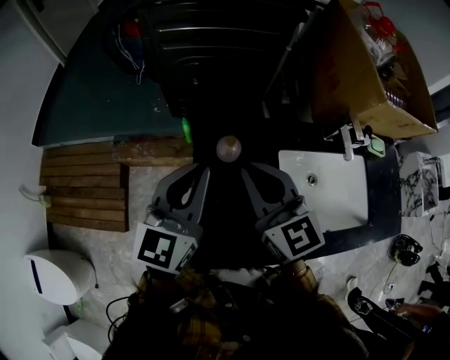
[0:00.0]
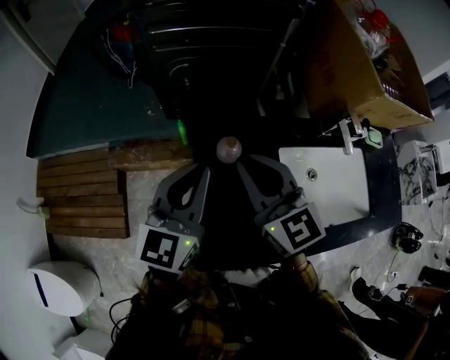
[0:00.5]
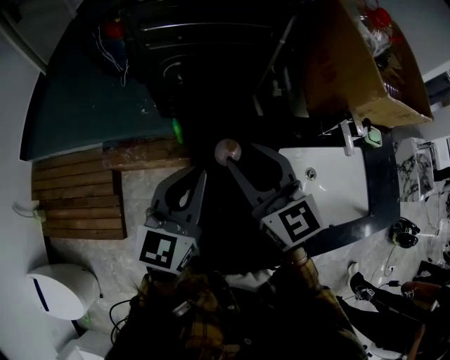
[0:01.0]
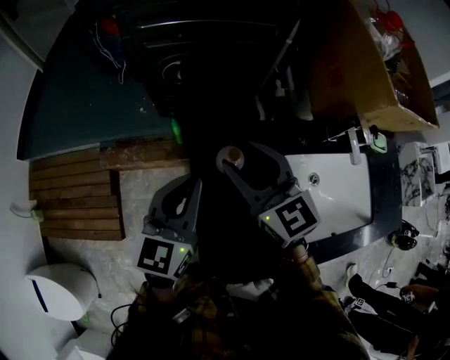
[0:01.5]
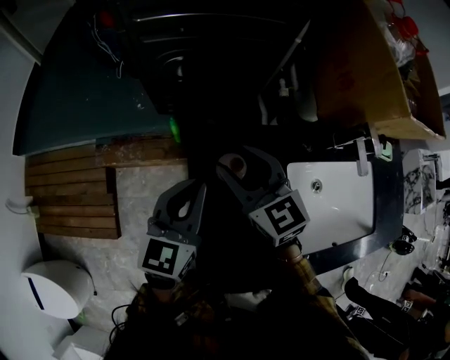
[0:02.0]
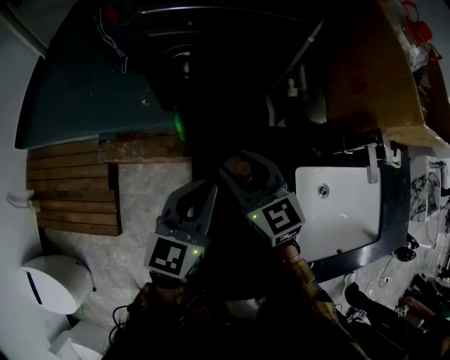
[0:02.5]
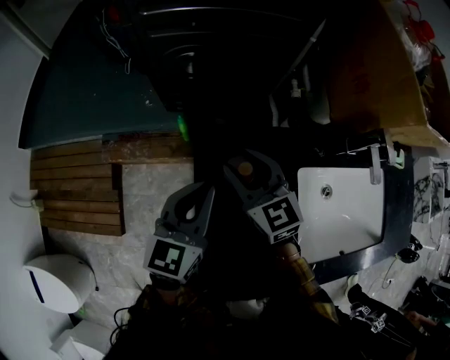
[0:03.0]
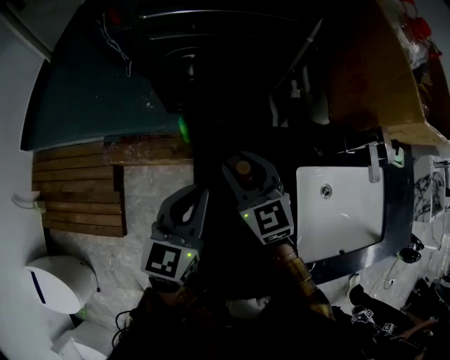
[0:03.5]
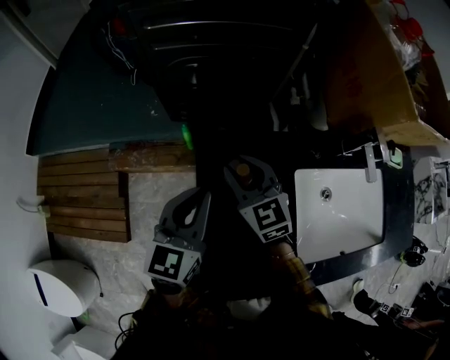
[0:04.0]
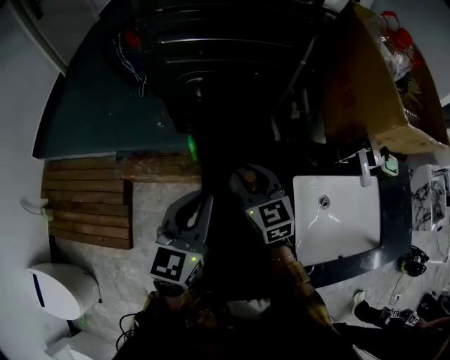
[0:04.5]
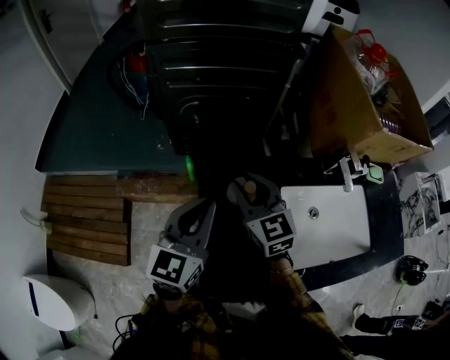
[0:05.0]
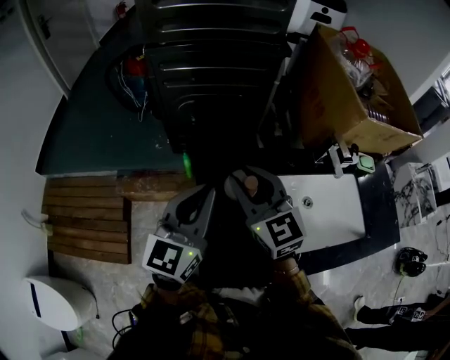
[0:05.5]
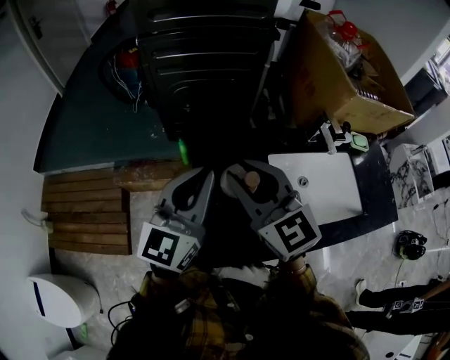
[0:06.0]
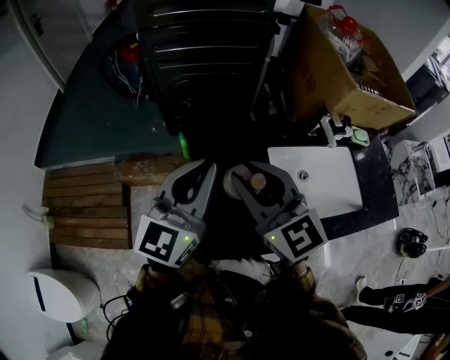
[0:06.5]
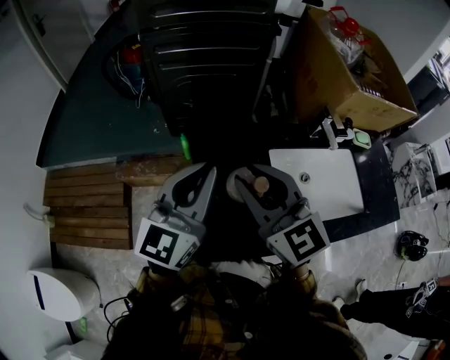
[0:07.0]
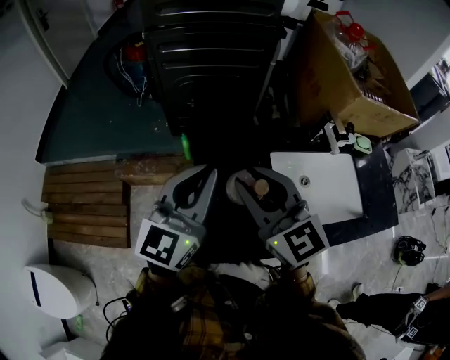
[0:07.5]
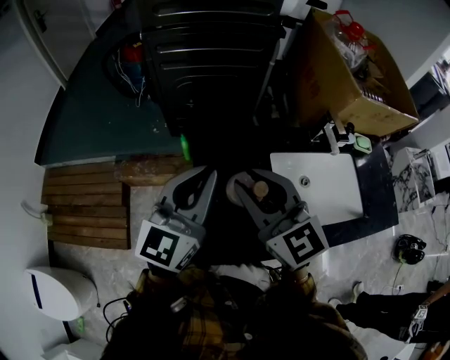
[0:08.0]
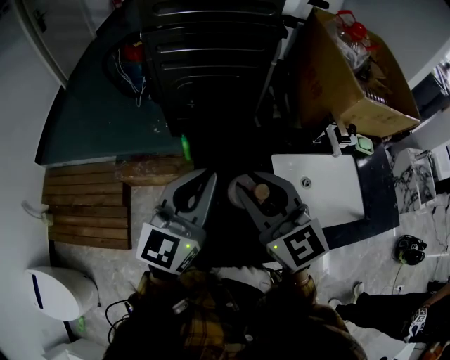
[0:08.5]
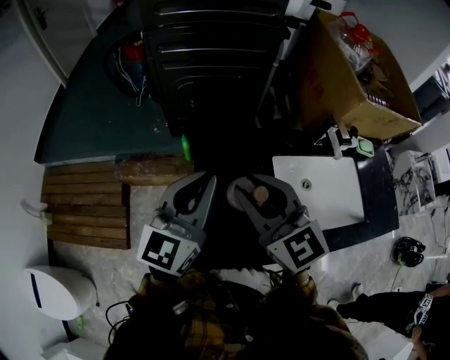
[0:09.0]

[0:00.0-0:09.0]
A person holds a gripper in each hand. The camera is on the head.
0:00.0 to 0:02.0: The right gripper is displaced forward and downward by about 15 cm, and opens up. Meanwhile the left gripper goes about 15 cm downward and forward.
0:02.0 to 0:04.5: There are only small adjustments of the grippers.
0:04.5 to 0:07.0: The left gripper goes roughly 15 cm upward and backward; the right gripper is displaced upward and backward by approximately 30 cm.
0:07.0 to 0:09.0: The grippers make only small movements.

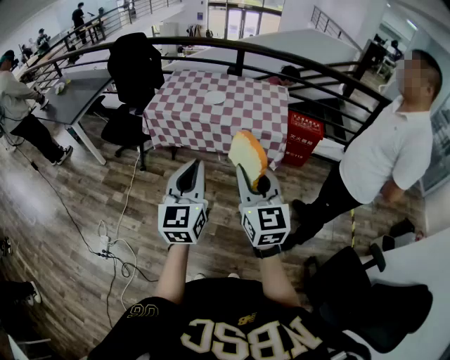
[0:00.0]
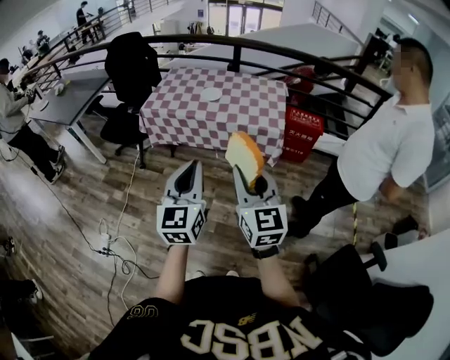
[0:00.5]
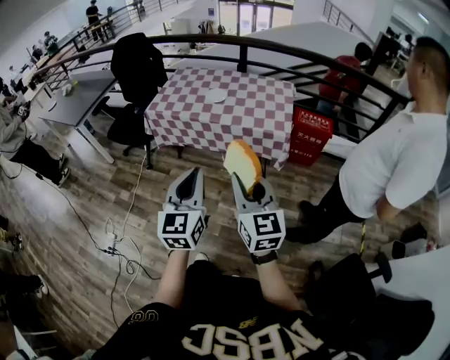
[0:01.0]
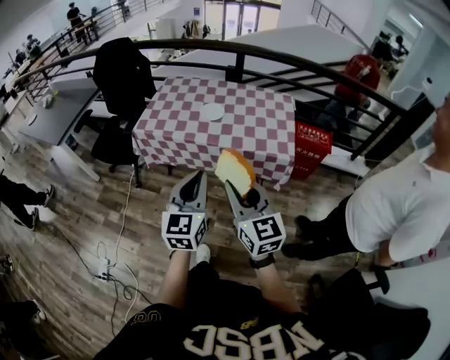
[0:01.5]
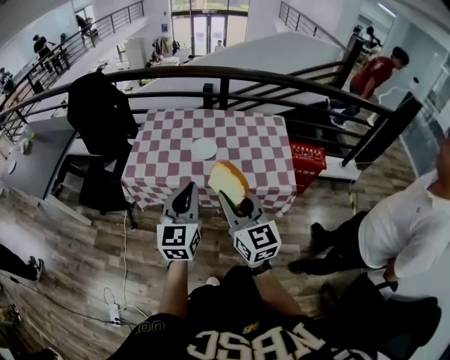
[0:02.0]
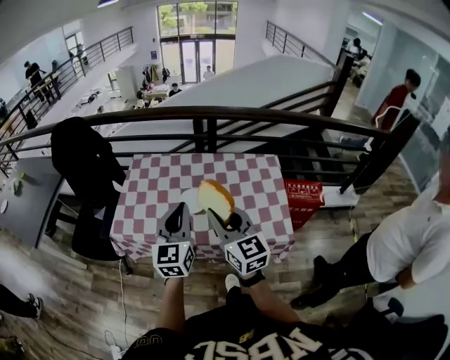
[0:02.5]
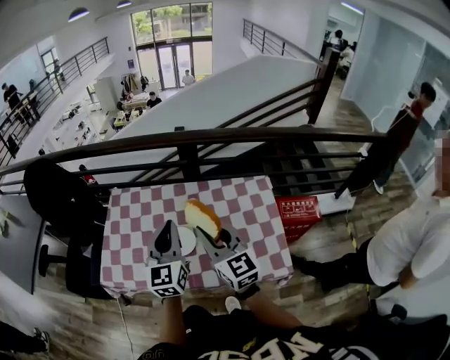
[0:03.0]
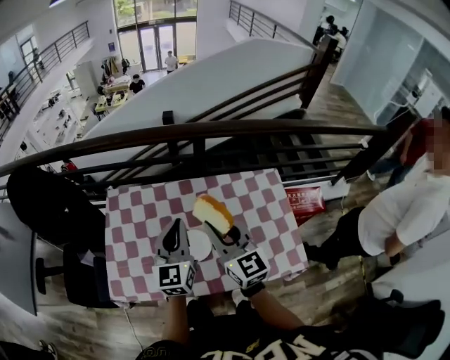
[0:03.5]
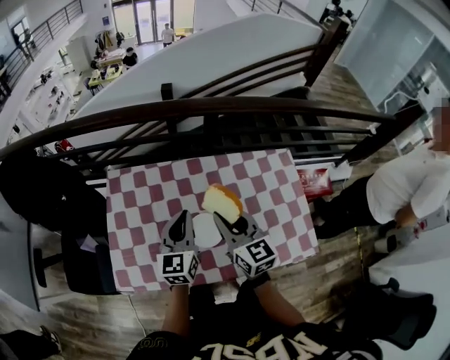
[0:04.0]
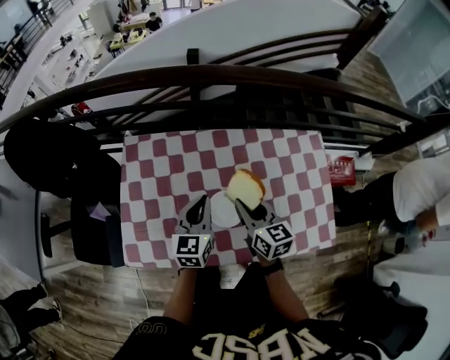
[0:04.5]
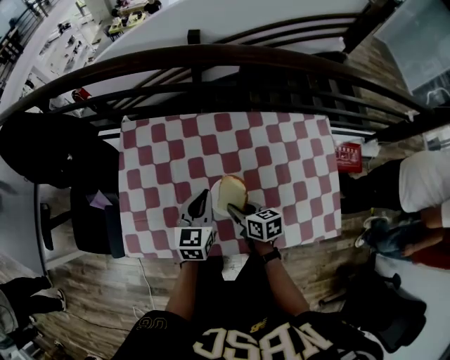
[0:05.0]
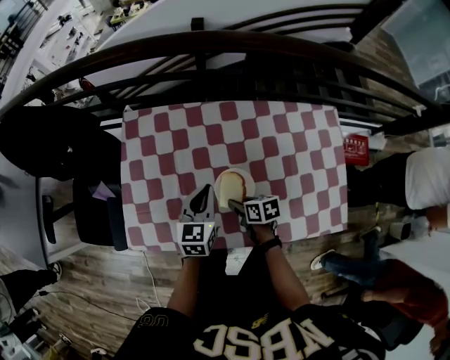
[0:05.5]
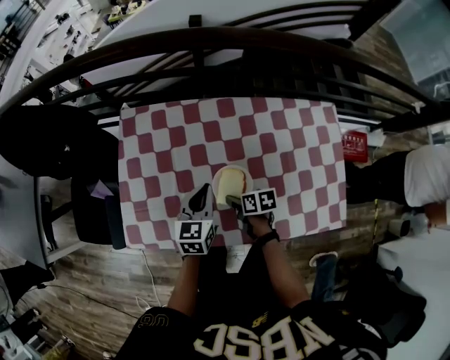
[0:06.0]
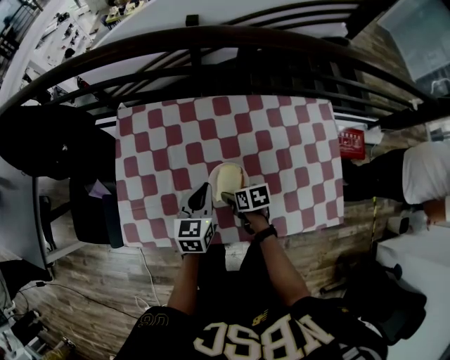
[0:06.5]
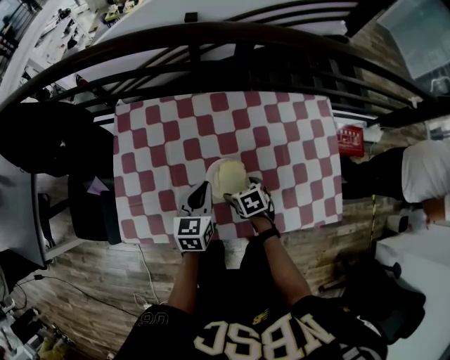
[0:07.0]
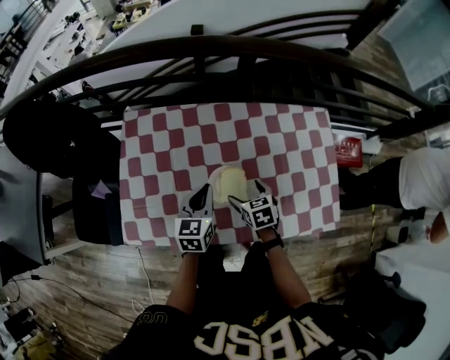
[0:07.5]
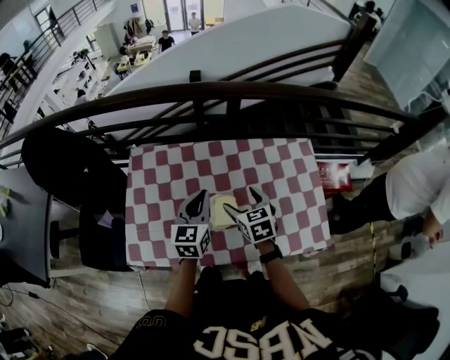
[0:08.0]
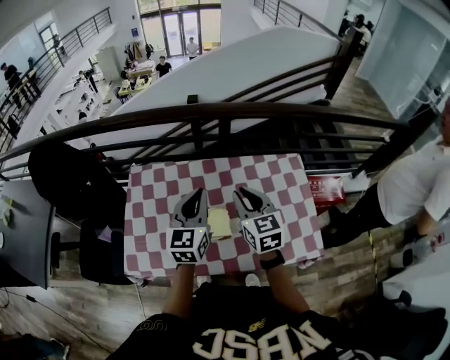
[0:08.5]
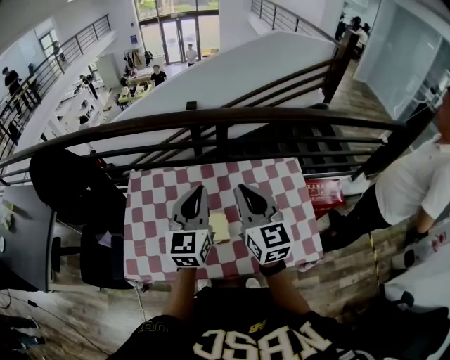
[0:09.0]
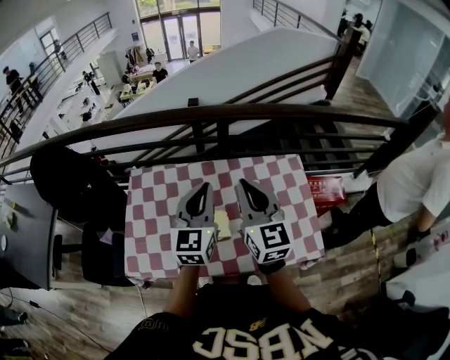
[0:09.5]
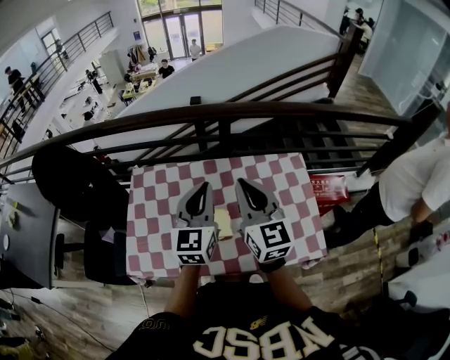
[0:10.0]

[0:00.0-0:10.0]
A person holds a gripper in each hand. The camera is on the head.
0:00.0 to 0:02.0: Both grippers move forward, some 35 cm.
0:02.0 to 0:04.0: Both grippers are carried forward, approximately 50 cm.
0:04.0 to 0:06.0: The right gripper travels downward by roughly 30 cm, and angles its fingers downward, by roughly 40 degrees. Meanwhile the left gripper is displaced downward by roughly 15 cm.
0:06.0 to 0:08.0: The right gripper shifts some 20 cm upward, changes its angle by roughly 50 degrees, and opens up; the left gripper shifts some 15 cm upward.
0:08.0 to 0:10.0: The right gripper travels upward by some 25 cm, points its fingers about 40 degrees further upward, and closes up; the left gripper travels upward and to the right by roughly 15 cm.

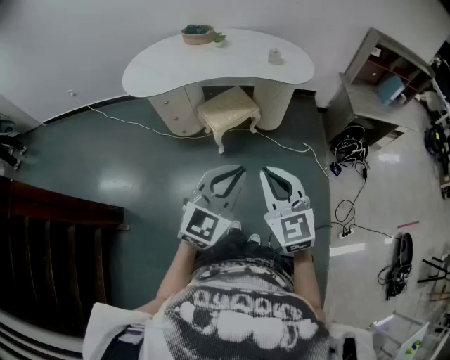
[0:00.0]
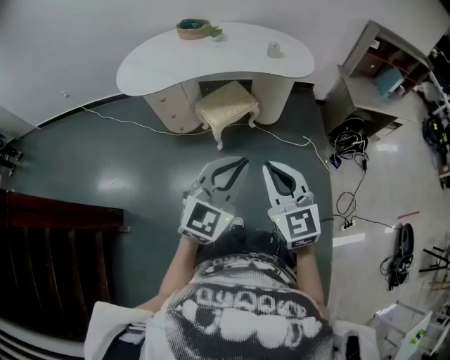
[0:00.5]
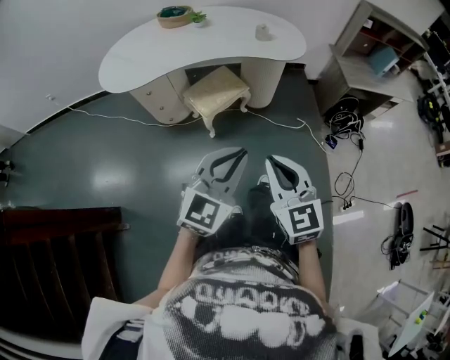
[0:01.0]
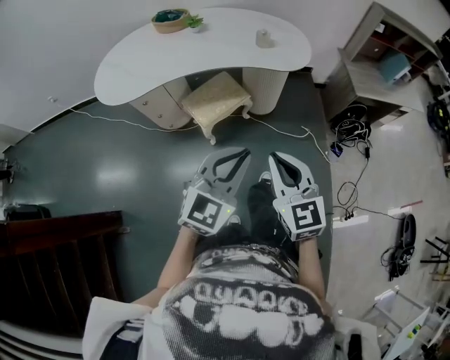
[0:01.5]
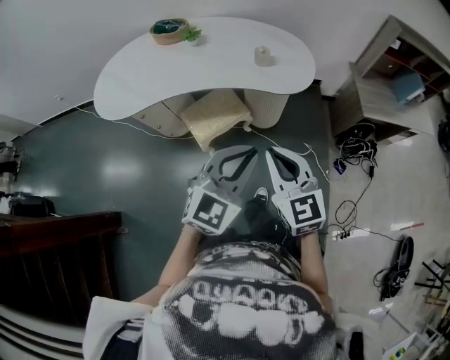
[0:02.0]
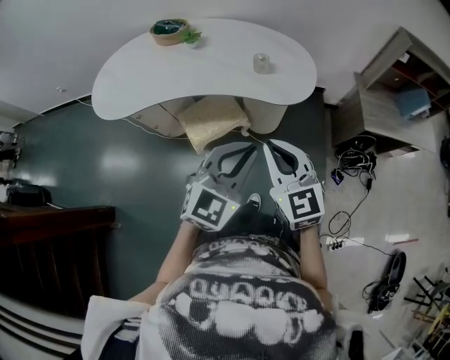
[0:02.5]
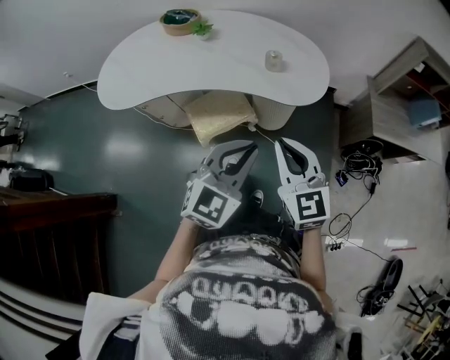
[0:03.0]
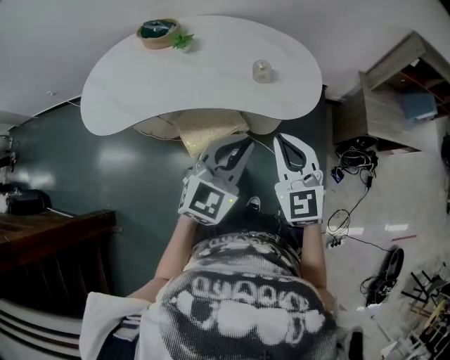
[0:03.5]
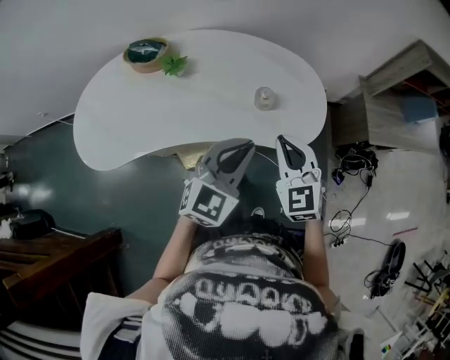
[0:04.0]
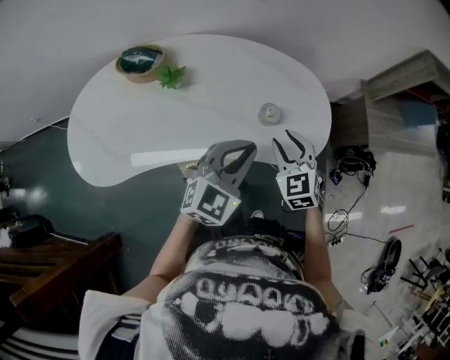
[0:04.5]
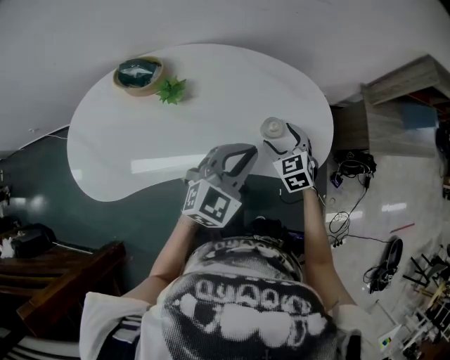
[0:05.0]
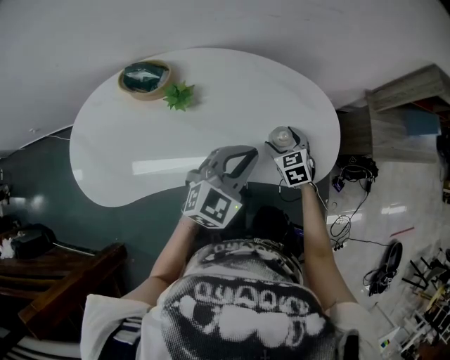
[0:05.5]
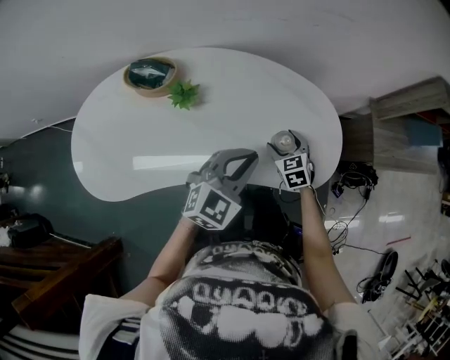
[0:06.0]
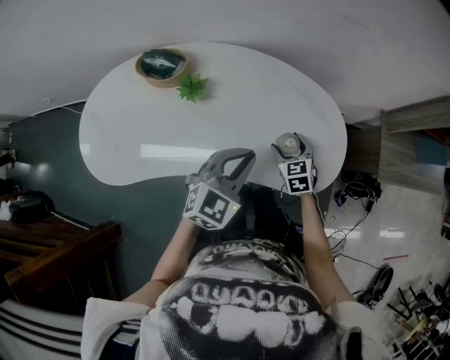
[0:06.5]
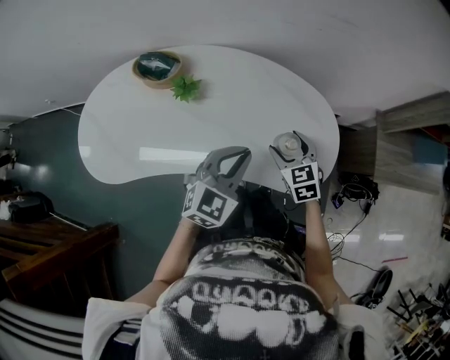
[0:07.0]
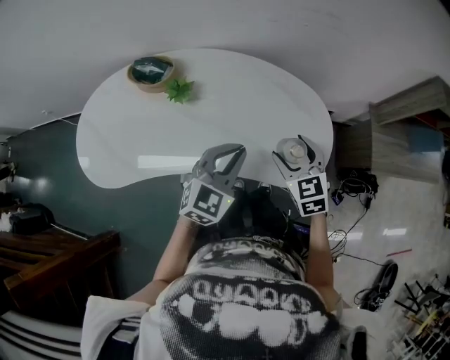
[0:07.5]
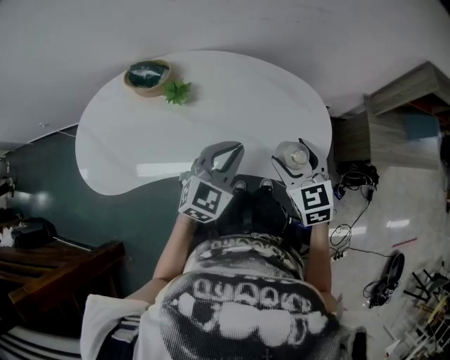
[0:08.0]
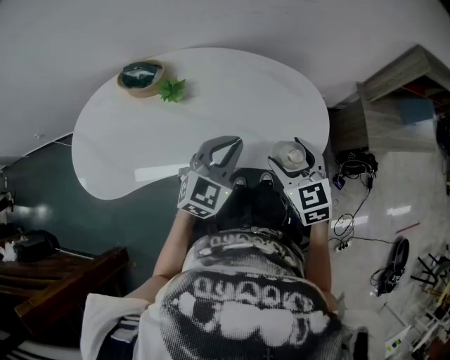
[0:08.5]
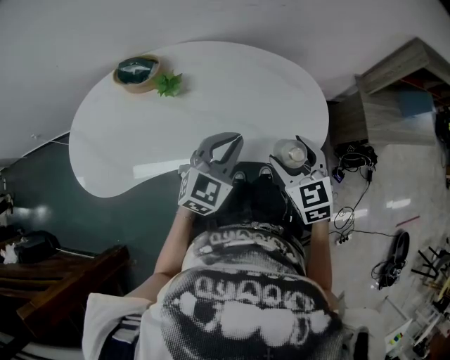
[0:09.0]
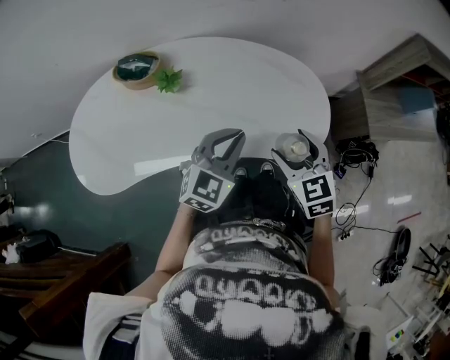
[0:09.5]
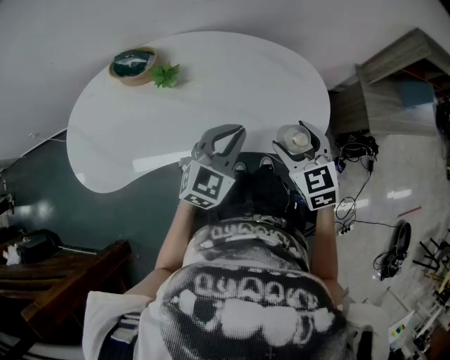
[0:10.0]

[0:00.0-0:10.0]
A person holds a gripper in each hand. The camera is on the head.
0:00.0 to 0:02.0: The two grippers go some 30 cm forward.
0:02.0 to 0:04.0: The two grippers go roughly 30 cm forward.
0:04.0 to 0:06.0: The left gripper goes about 15 cm forward, to the left and downward. Meanwhile the right gripper moves downward and forward, about 25 cm, changes its angle by some 30 degrees, and opens up.
0:06.0 to 0:08.0: The right gripper is displaced upward and backward by some 20 cm.
0:08.0 to 0:10.0: The grippers make only small movements.
